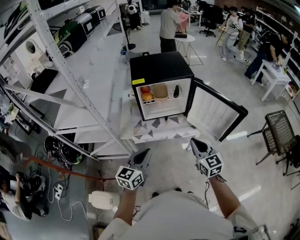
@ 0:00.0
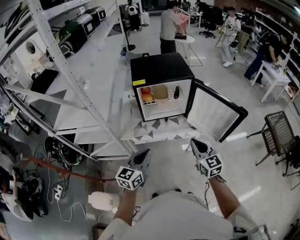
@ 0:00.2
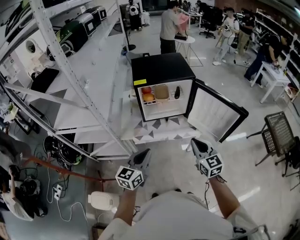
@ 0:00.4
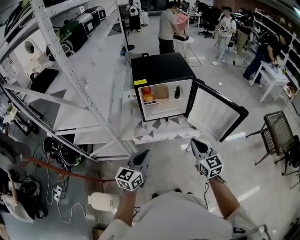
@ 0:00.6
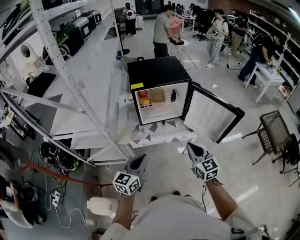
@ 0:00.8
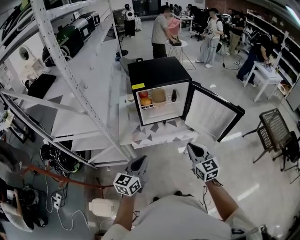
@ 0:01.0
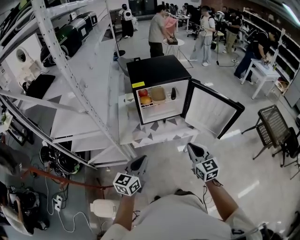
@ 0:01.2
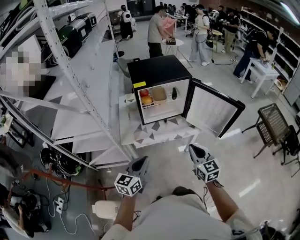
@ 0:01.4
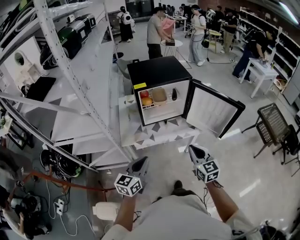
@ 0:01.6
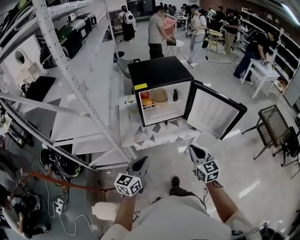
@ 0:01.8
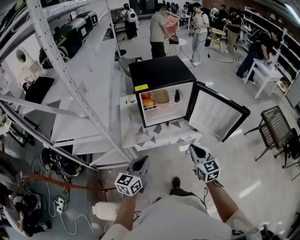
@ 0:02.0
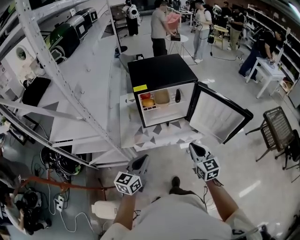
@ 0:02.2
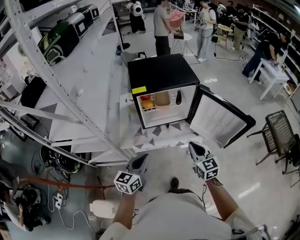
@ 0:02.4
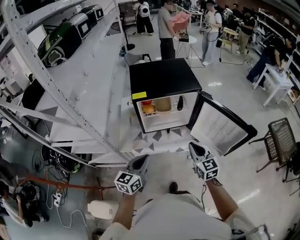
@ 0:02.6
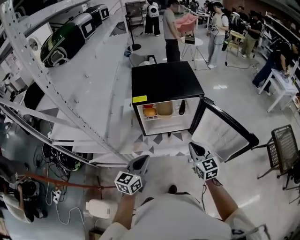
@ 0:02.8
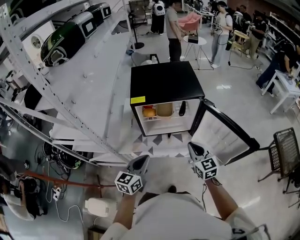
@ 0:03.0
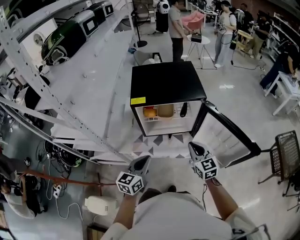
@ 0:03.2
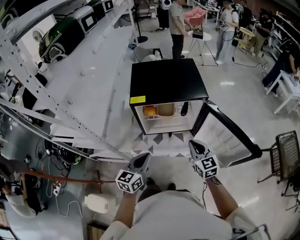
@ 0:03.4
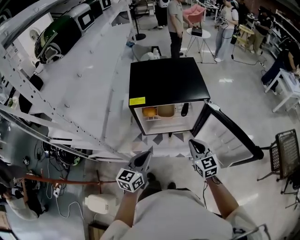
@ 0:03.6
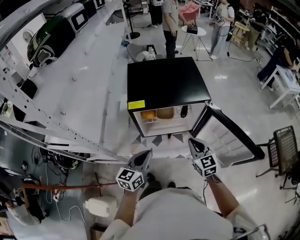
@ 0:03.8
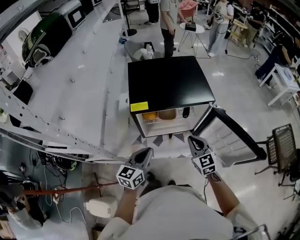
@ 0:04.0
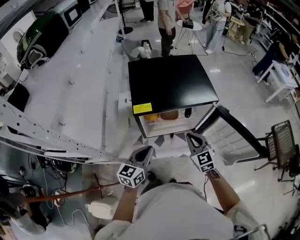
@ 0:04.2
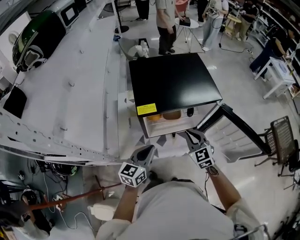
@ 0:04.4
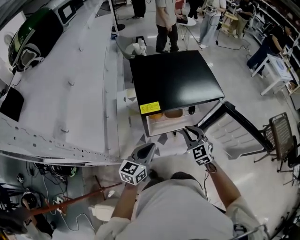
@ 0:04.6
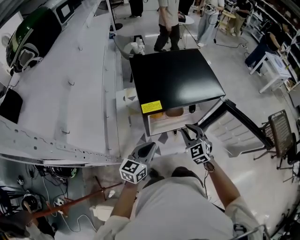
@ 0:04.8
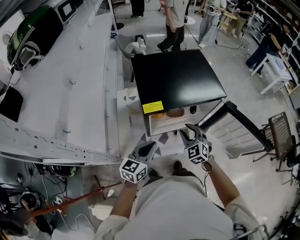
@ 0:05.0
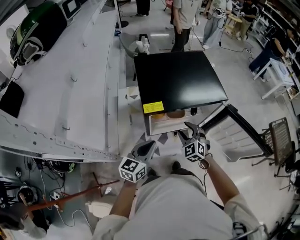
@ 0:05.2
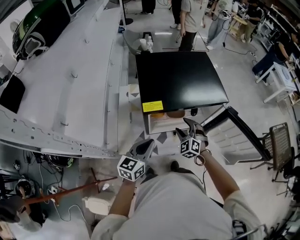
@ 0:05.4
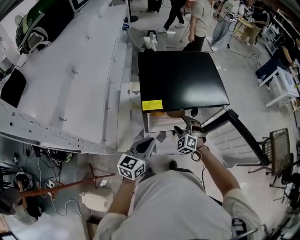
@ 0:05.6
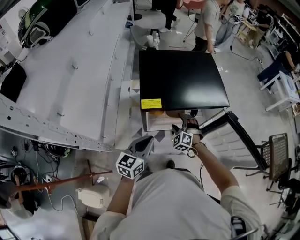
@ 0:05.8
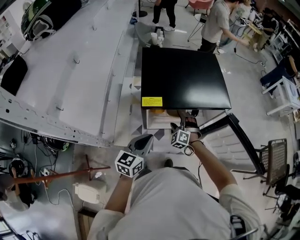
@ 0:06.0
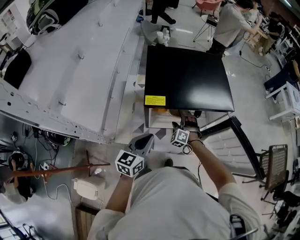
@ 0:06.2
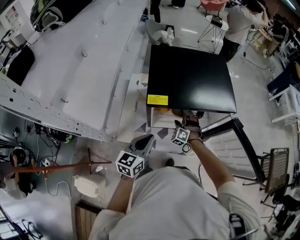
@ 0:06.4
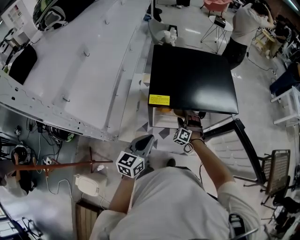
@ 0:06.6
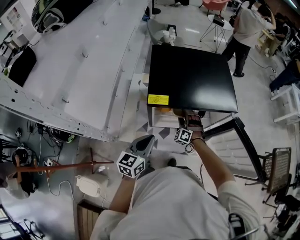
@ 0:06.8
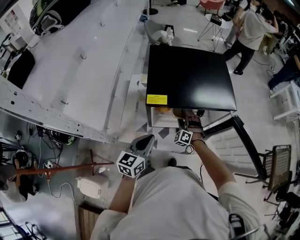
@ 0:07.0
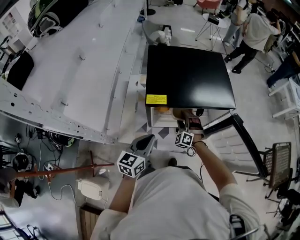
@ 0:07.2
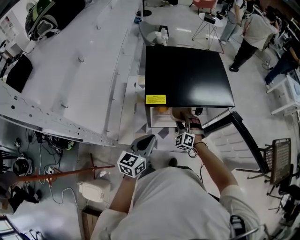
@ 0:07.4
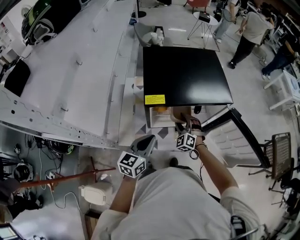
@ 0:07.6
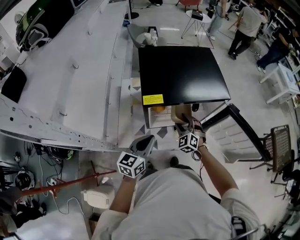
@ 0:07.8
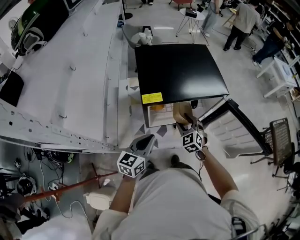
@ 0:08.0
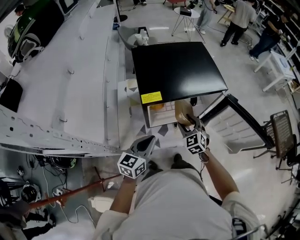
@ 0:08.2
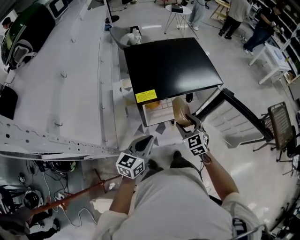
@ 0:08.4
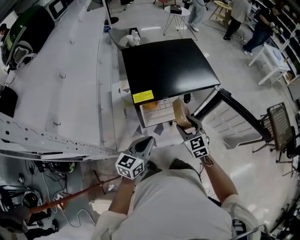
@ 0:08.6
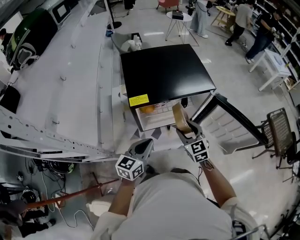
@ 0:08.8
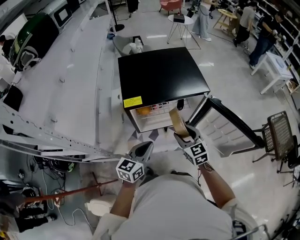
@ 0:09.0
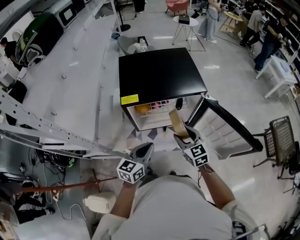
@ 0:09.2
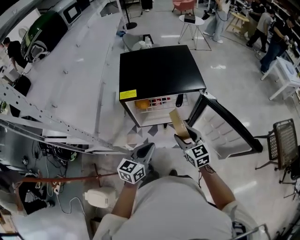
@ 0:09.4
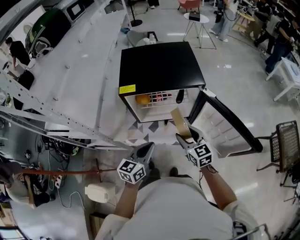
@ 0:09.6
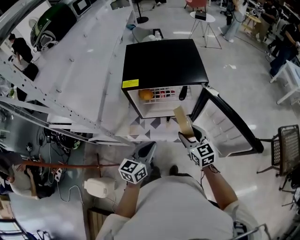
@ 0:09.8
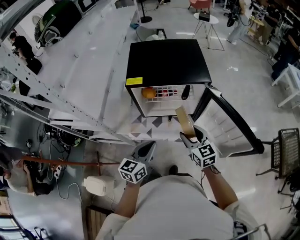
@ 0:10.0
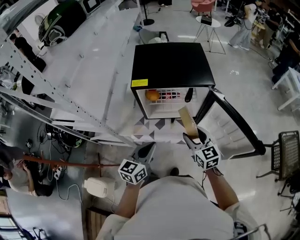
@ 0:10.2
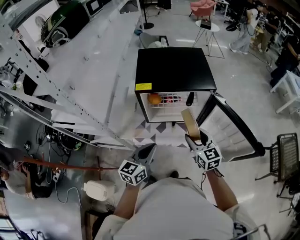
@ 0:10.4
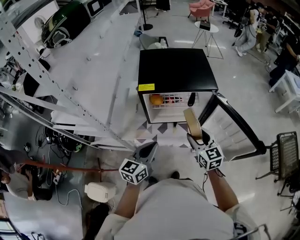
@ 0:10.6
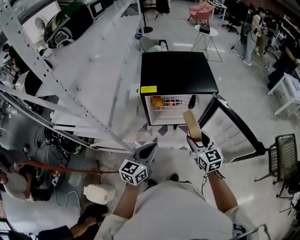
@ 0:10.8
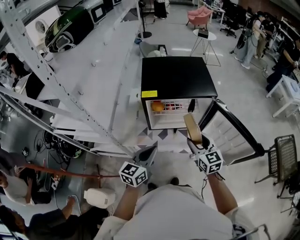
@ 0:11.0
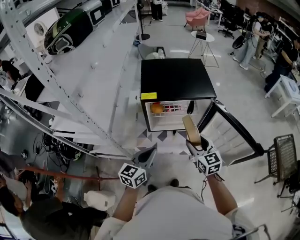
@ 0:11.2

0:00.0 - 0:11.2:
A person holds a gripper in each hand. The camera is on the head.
0:00.0 - 0:01.6: The grippers both shift to the left by roughly 5 cm.
0:01.6 - 0:03.2: The left gripper heads forward and to the right, covering roughly 20 cm; the right gripper moves forward, roughly 25 cm.
0:03.2 - 0:04.8: The left gripper heads forward and to the left, covering roughly 15 cm; the right gripper moves to the left, forward and downward, some 20 cm, and changes its angle by roughly 30 degrees.
0:04.8 - 0:06.4: The right gripper goes some 20 cm downward and forward, rolls counterclockwise, seen from behind, by approximately 40 degrees, and opens its fingers.
0:06.4 - 0:08.0: The right gripper heads upward and backward, covering about 15 cm, changes its angle by approximately 40 degrees, and closes up.
0:08.0 - 0:09.6: The right gripper shifts approximately 20 cm to the right, backward and upward, and changes its angle by some 40 degrees; the left gripper moves to the right and backward, about 15 cm.
0:09.6 - 0:11.2: The right gripper is displaced upward by some 5 cm. Meanwhile the left gripper moves to the left, approximately 5 cm.

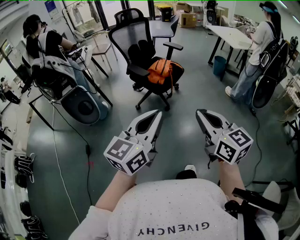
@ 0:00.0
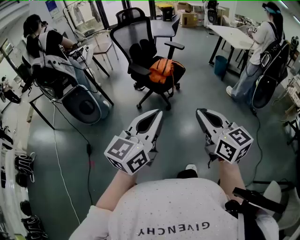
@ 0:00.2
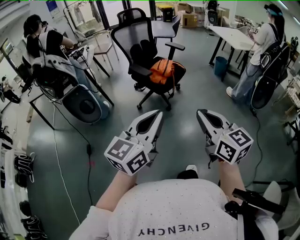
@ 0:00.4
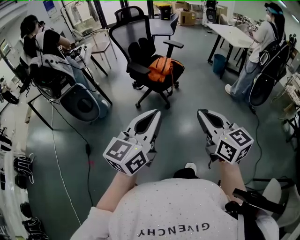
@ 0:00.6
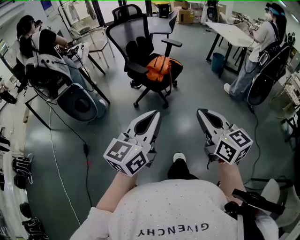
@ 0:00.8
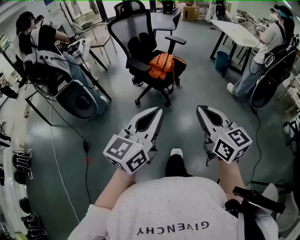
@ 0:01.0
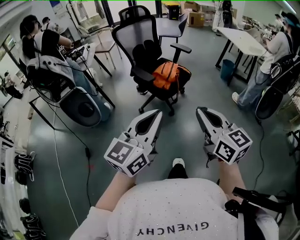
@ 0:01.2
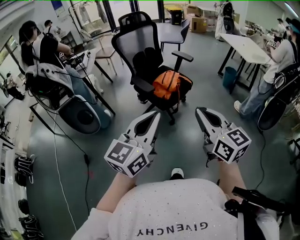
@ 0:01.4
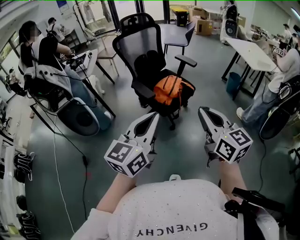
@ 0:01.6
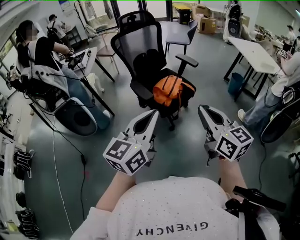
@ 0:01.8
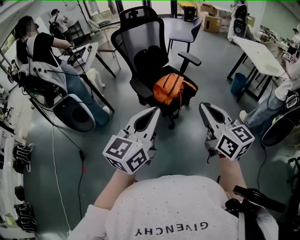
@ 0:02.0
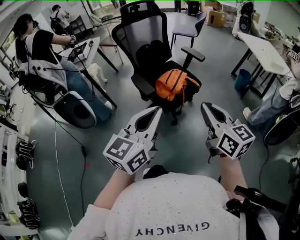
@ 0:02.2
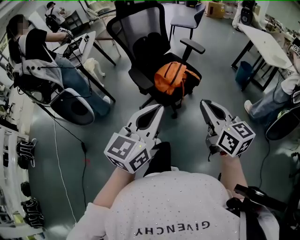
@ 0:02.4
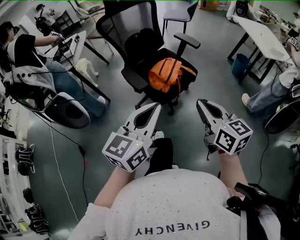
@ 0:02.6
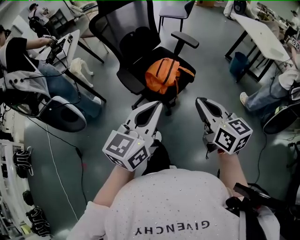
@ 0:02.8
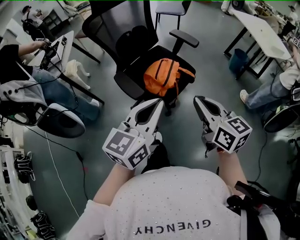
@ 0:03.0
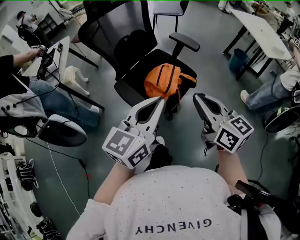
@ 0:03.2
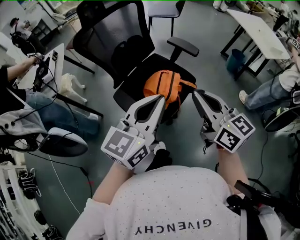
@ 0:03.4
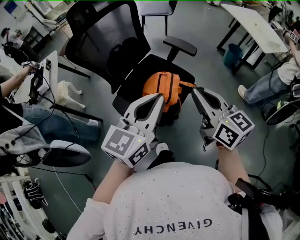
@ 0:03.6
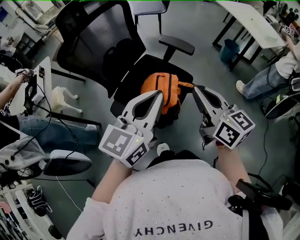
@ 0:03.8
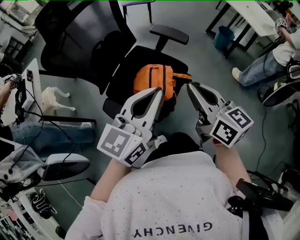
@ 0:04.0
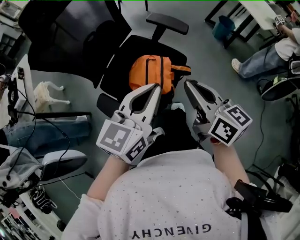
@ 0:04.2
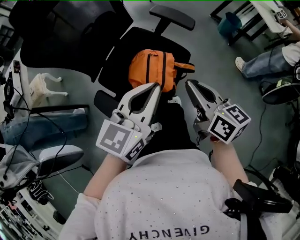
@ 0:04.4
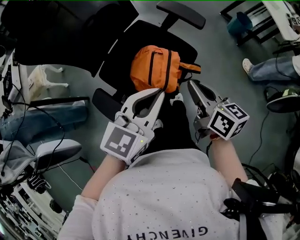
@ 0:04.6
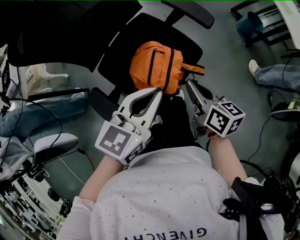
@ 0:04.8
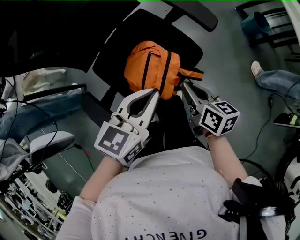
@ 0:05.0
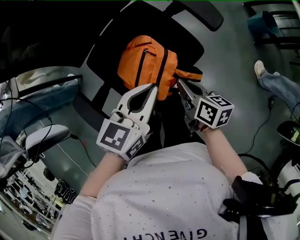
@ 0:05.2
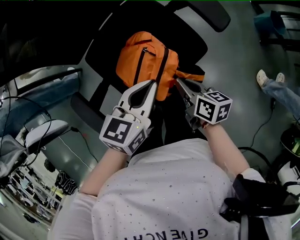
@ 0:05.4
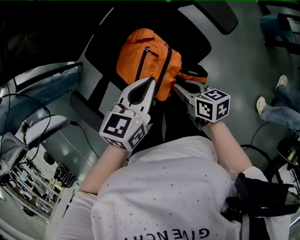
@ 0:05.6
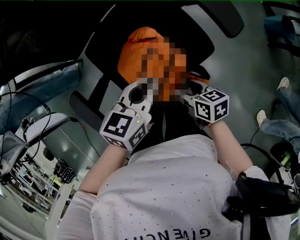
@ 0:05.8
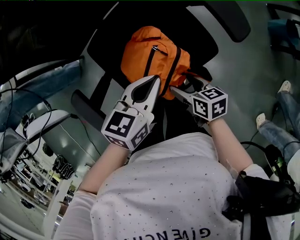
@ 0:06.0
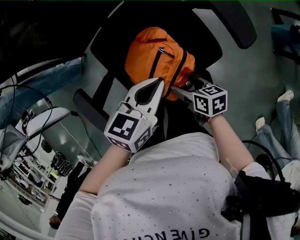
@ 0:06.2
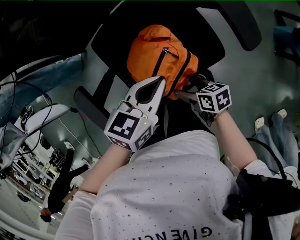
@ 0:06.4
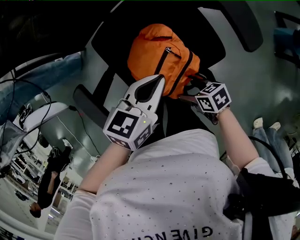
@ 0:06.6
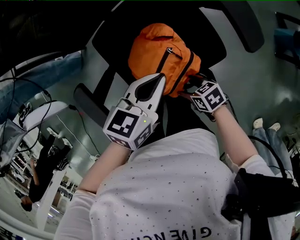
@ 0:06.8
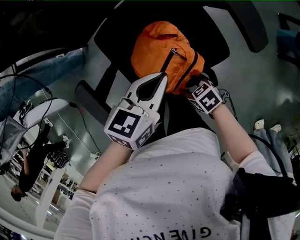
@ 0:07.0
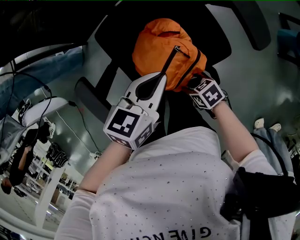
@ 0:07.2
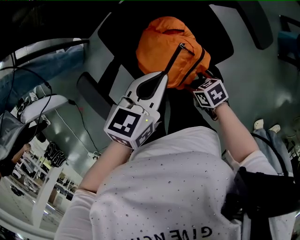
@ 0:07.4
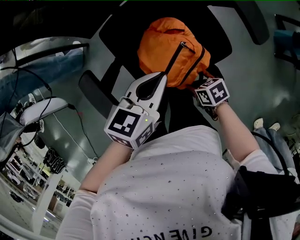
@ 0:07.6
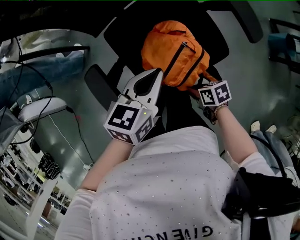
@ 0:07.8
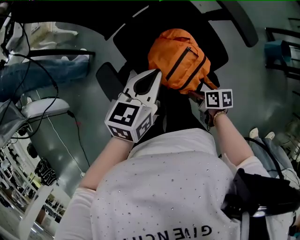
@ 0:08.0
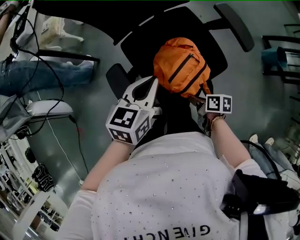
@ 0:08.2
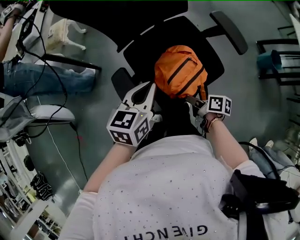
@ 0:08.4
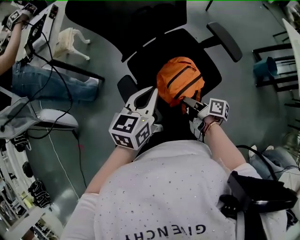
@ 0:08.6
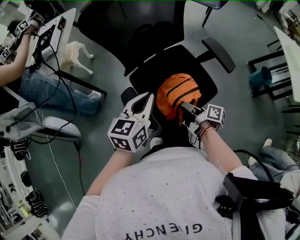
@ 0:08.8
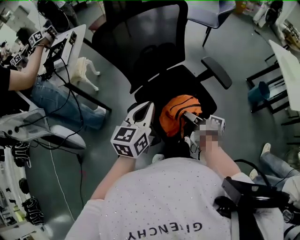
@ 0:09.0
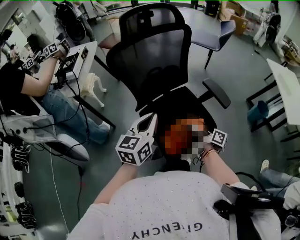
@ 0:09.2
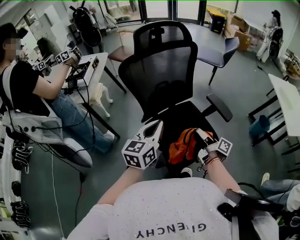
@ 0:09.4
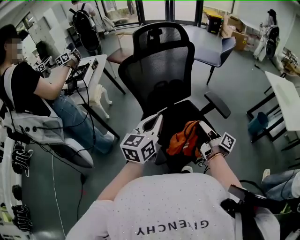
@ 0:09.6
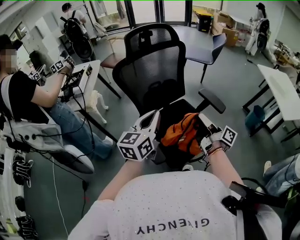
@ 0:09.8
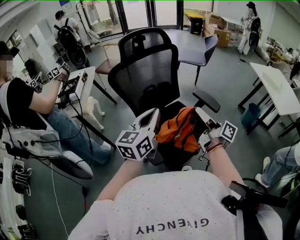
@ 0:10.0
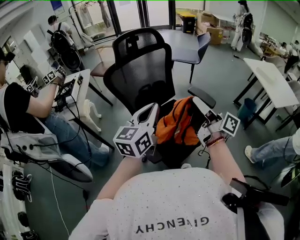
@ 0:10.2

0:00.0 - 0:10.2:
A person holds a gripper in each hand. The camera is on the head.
0:00.0 - 0:01.4: The grippers both shift forward by approximately 20 cm.
0:01.4 - 0:03.0: Both grippers move forward, roughly 30 cm.
0:03.0 - 0:04.4: The right gripper shifts about 25 cm forward and downward; the left gripper is displaced forward by some 25 cm.
0:04.4 - 0:05.8: The two grippers go approximately 30 cm downward. The left gripper turns by approximately 40 degrees; the right gripper turns by some 50 degrees, and opens.
0:05.8 - 0:07.2: The right gripper is displaced downward by about 5 cm, and turns by approximately 40 degrees.
0:07.2 - 0:08.8: Both grippers travel together upward, roughly 20 cm. The right gripper points its fingers approximately 30 degrees further upward; the left gripper swivels roughly 20 degrees.
0:08.8 - 0:10.2: The left gripper moves upward, about 20 cm, and swivels roughly 20 degrees. The right gripper travels upward by some 35 cm, and angles its fingers upward, by about 40 degrees.

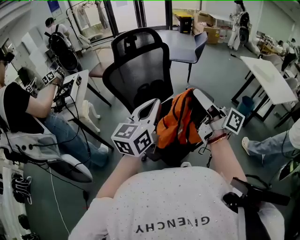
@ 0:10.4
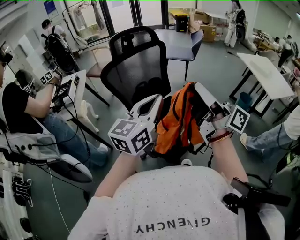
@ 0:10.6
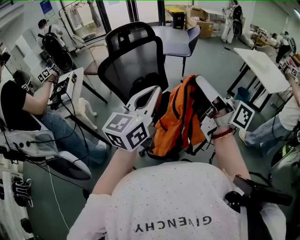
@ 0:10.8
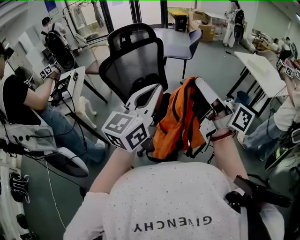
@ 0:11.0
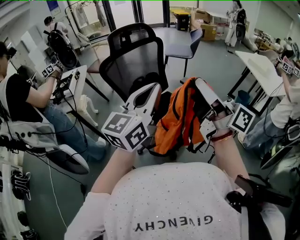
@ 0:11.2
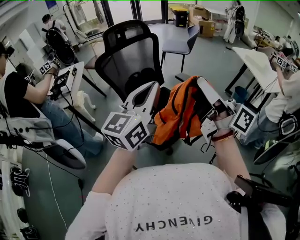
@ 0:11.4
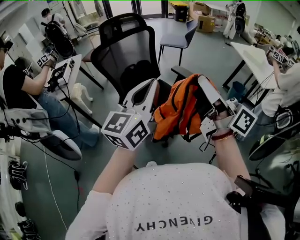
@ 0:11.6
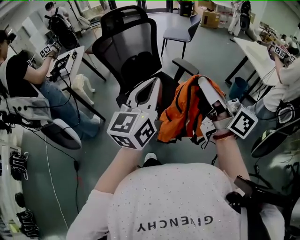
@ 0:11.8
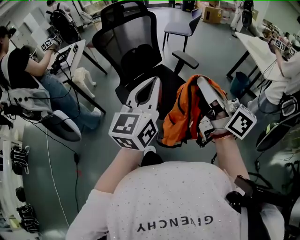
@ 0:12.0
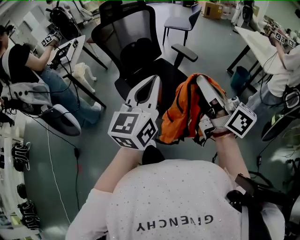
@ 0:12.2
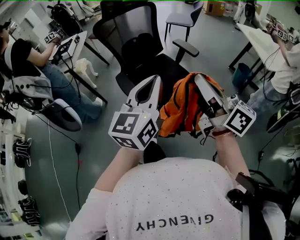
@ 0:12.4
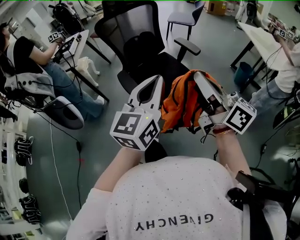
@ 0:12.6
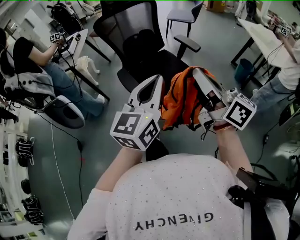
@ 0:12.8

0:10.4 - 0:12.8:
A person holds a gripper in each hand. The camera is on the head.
0:10.4 - 0:11.6: The left gripper travels backward, to the right and upward by roughly 15 cm; the right gripper shifts roughly 20 cm backward and to the right.
0:11.6 - 0:12.8: The right gripper is displaced backward and downward by about 10 cm, while the left gripper shifts some 15 cm backward.
